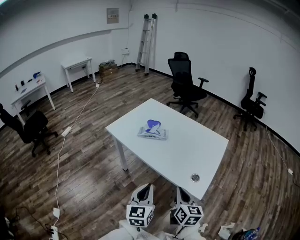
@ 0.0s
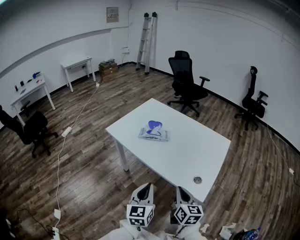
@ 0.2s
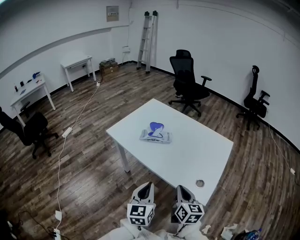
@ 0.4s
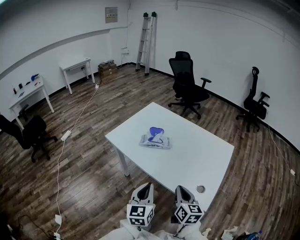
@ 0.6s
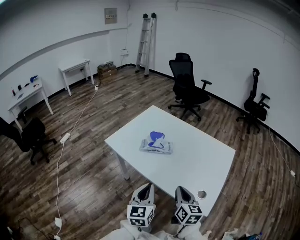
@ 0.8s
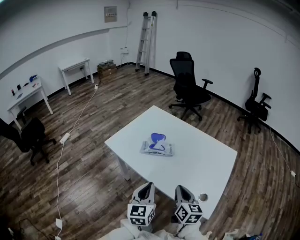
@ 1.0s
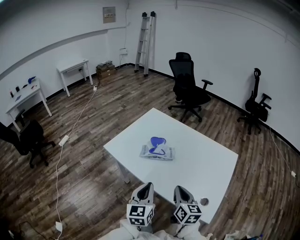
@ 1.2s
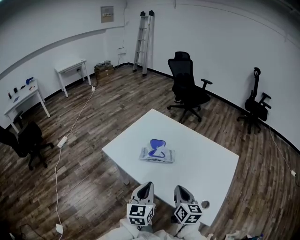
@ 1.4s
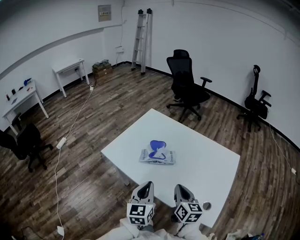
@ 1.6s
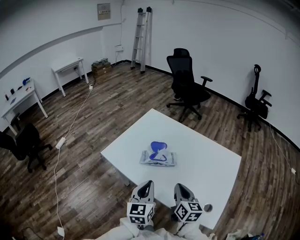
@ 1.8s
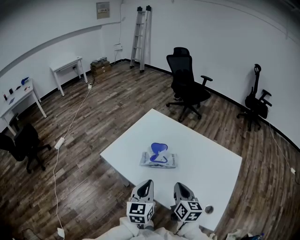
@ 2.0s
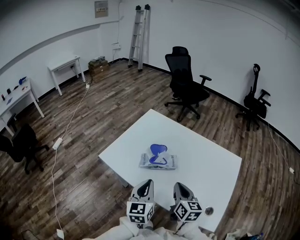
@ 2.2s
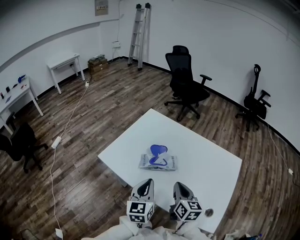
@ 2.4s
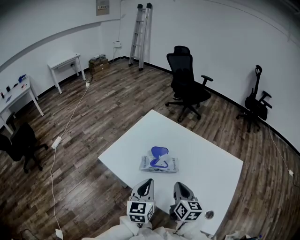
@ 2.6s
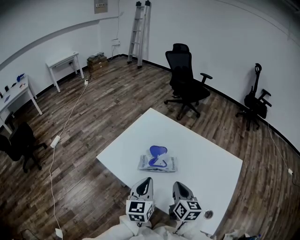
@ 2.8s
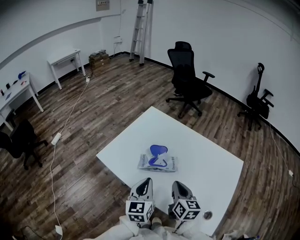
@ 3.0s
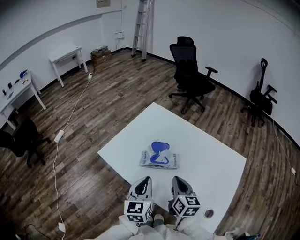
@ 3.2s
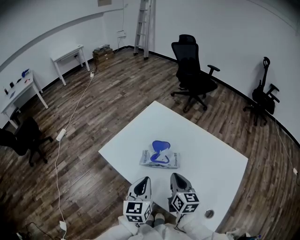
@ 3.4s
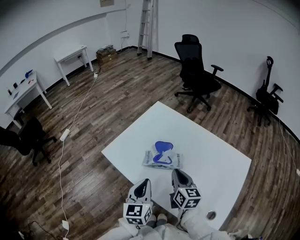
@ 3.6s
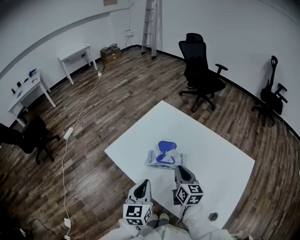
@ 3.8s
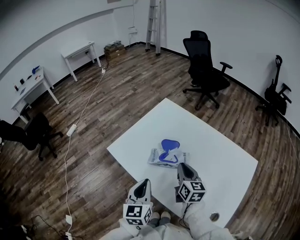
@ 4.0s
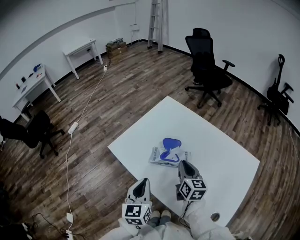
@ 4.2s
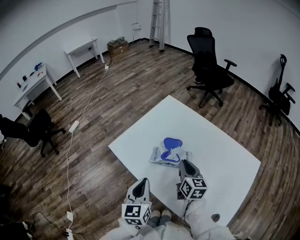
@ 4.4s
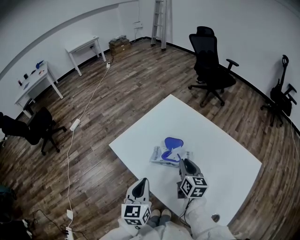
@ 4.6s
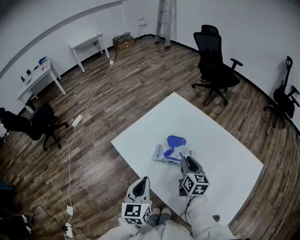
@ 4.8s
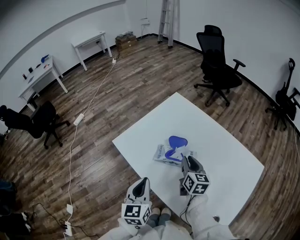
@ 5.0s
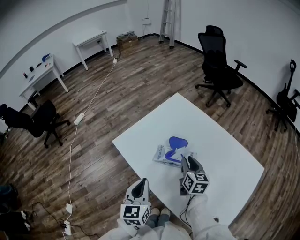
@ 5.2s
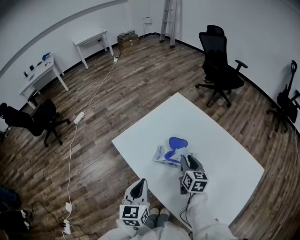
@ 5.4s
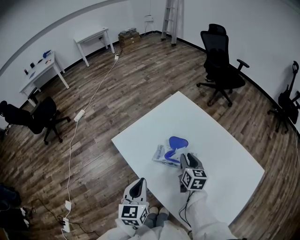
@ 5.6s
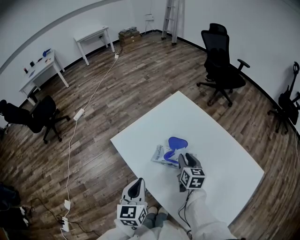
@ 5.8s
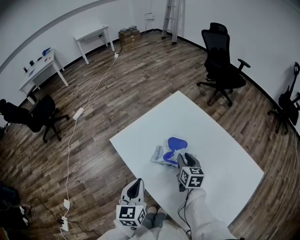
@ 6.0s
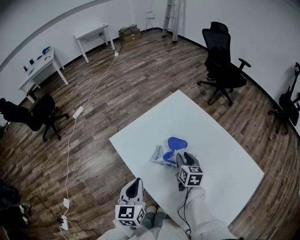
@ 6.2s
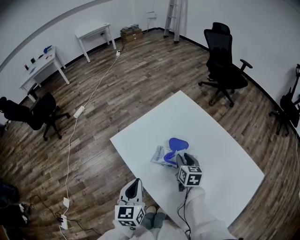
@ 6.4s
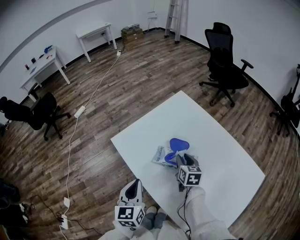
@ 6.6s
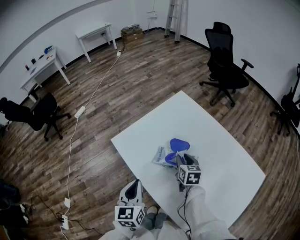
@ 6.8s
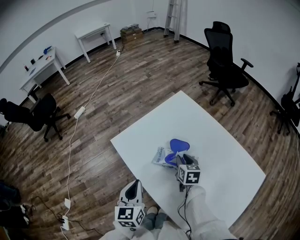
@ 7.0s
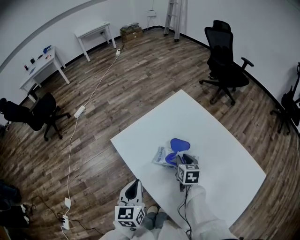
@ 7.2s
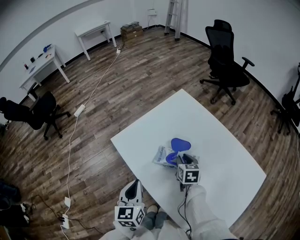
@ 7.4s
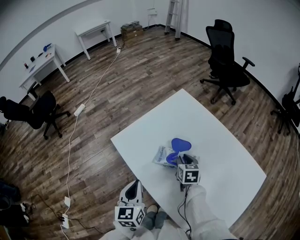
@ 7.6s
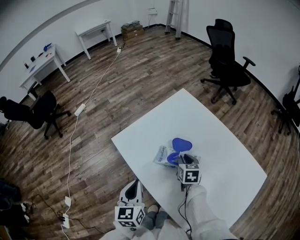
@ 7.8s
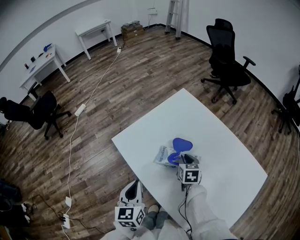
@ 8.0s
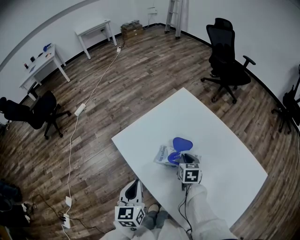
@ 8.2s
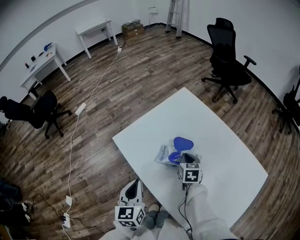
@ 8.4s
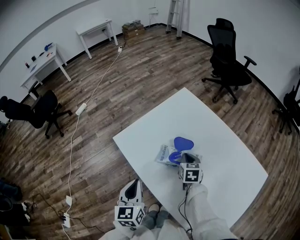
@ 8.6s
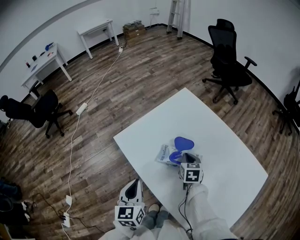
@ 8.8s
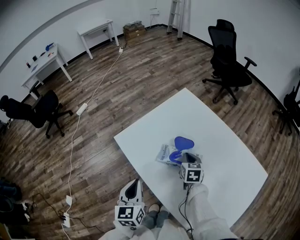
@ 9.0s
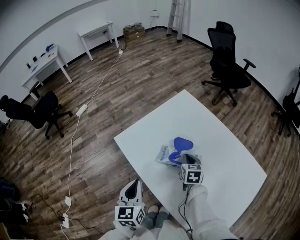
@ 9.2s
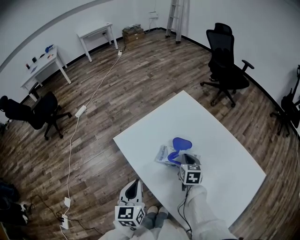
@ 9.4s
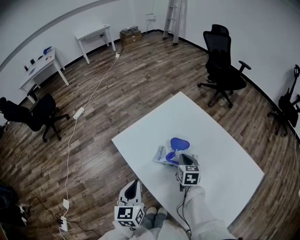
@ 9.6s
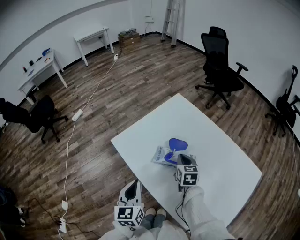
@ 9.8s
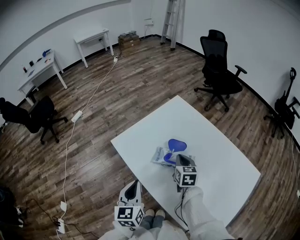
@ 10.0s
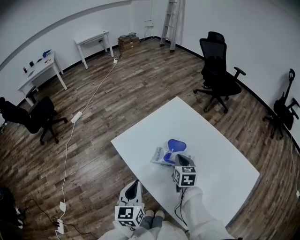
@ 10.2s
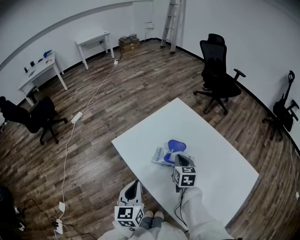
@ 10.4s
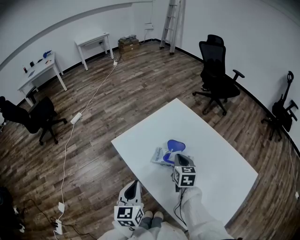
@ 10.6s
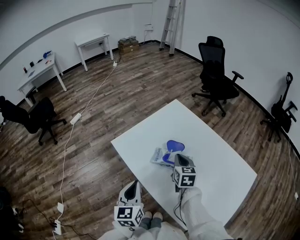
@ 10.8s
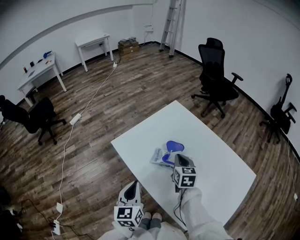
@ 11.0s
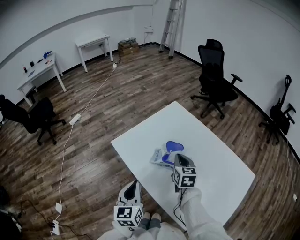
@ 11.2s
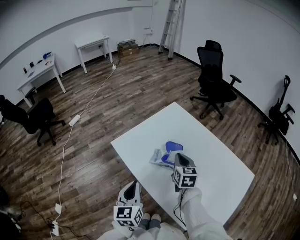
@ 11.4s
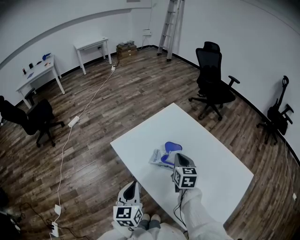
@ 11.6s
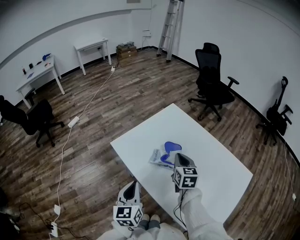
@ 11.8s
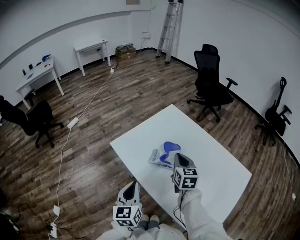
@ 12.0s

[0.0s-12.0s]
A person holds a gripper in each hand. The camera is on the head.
0.0s to 1.6s: Both grippers travel together forward, about 20 cm.
1.6s to 3.0s: The grippers both shift forward by some 10 cm.
3.0s to 4.4s: The left gripper goes roughly 5 cm to the left. Meanwhile the right gripper shifts some 10 cm forward.
4.4s to 6.0s: The right gripper travels forward and downward by about 10 cm.
6.0s to 7.6s: The right gripper moves downward, some 5 cm.
7.6s to 9.0s: The right gripper closes.
9.0s to 10.4s: The right gripper goes approximately 5 cm upward.
10.4s to 12.0s: The right gripper goes roughly 5 cm upward.

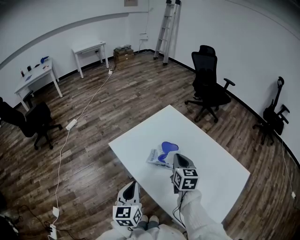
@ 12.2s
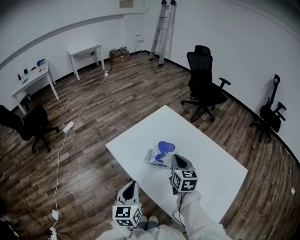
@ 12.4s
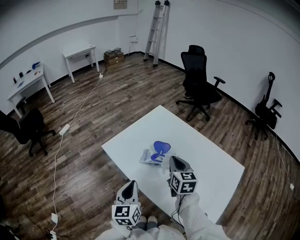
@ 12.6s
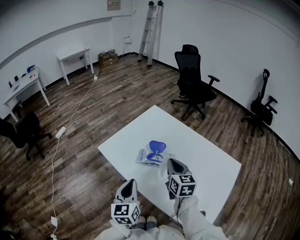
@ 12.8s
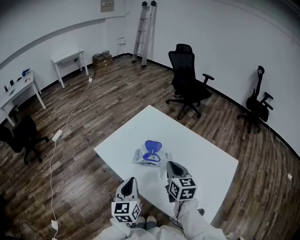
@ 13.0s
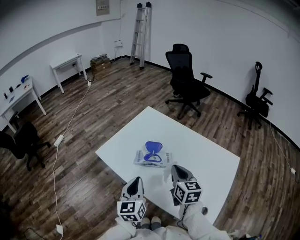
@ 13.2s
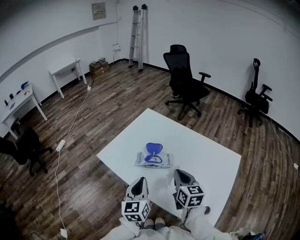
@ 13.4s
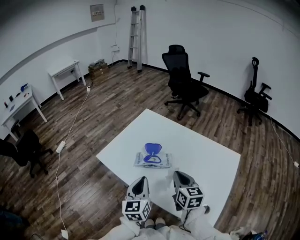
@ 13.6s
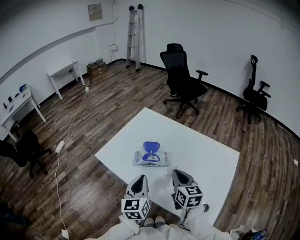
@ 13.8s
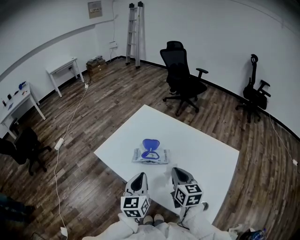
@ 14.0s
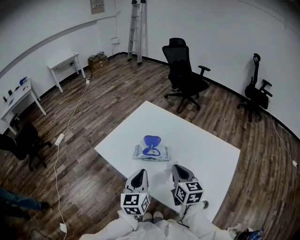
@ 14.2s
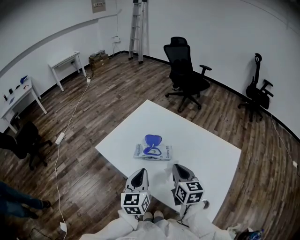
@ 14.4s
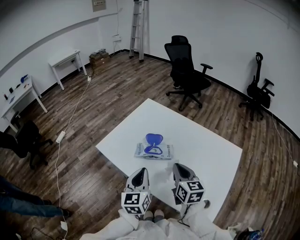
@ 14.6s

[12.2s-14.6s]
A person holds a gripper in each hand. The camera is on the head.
12.2s to 13.4s: The left gripper is displaced to the right by approximately 10 cm. Meanwhile the right gripper goes approximately 15 cm backward and to the right.
13.4s to 14.6s: There are only small adjustments of the grippers.

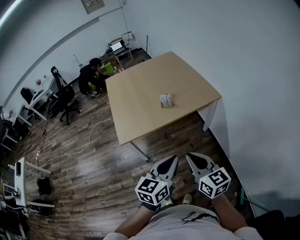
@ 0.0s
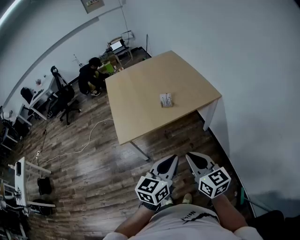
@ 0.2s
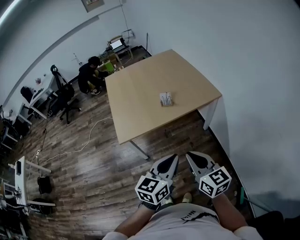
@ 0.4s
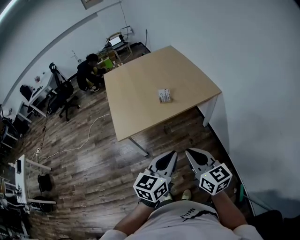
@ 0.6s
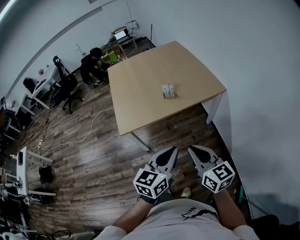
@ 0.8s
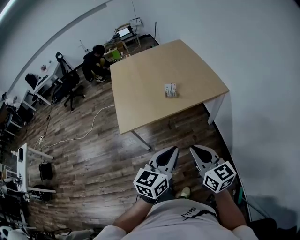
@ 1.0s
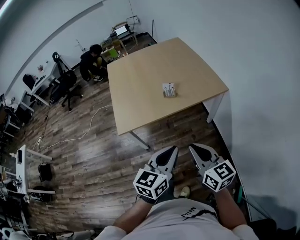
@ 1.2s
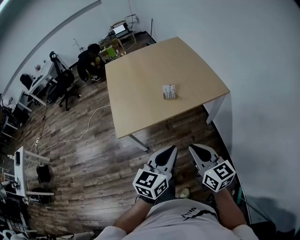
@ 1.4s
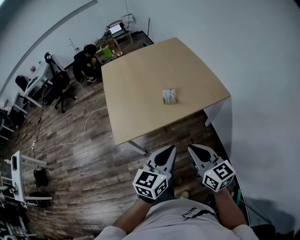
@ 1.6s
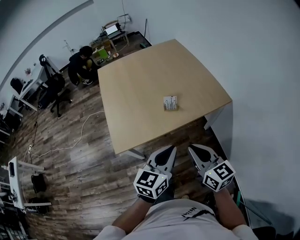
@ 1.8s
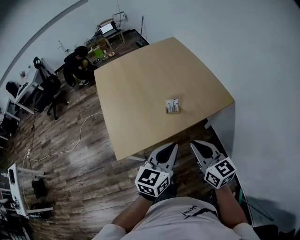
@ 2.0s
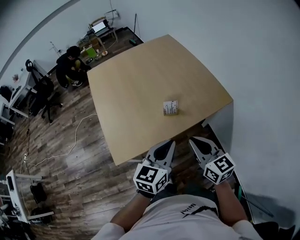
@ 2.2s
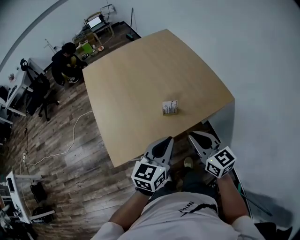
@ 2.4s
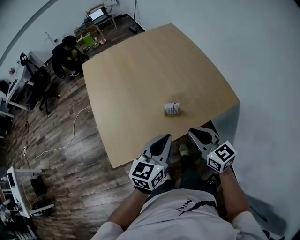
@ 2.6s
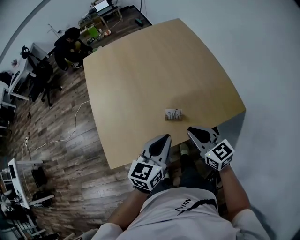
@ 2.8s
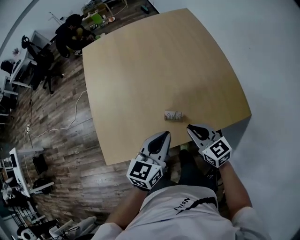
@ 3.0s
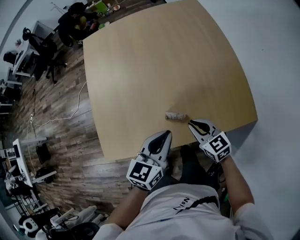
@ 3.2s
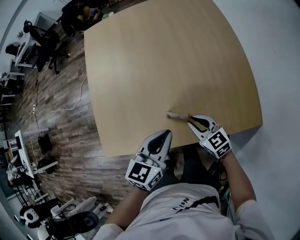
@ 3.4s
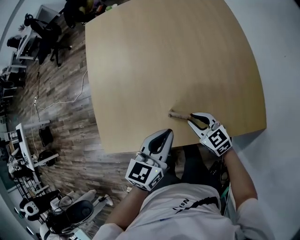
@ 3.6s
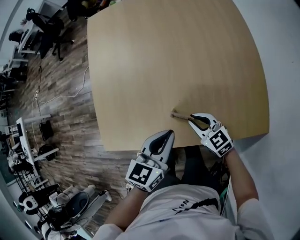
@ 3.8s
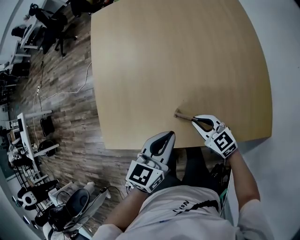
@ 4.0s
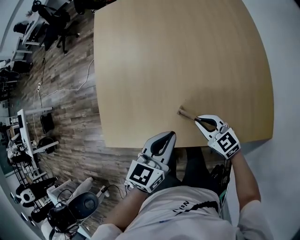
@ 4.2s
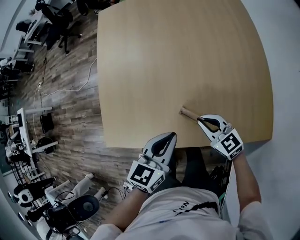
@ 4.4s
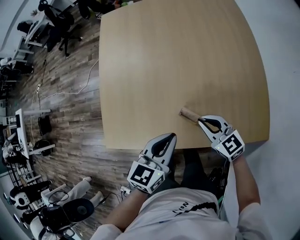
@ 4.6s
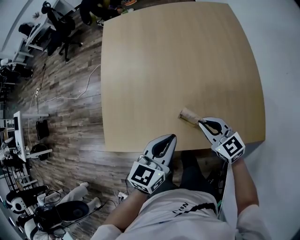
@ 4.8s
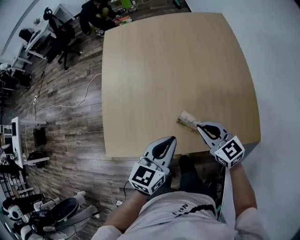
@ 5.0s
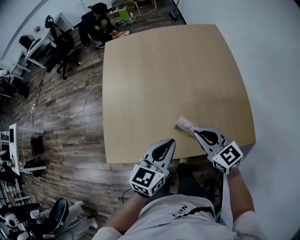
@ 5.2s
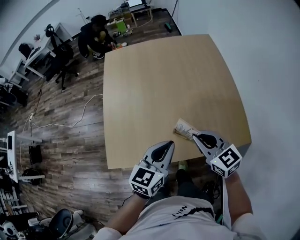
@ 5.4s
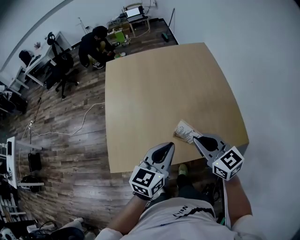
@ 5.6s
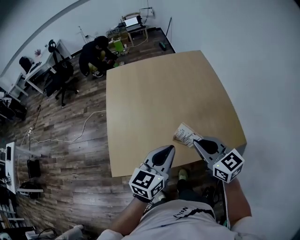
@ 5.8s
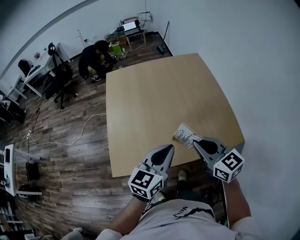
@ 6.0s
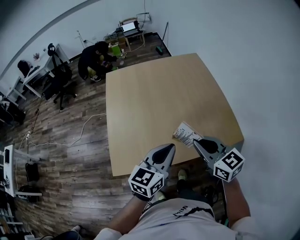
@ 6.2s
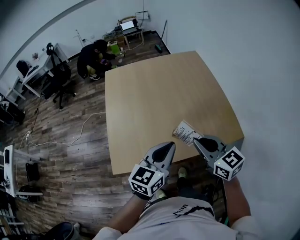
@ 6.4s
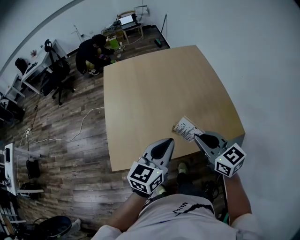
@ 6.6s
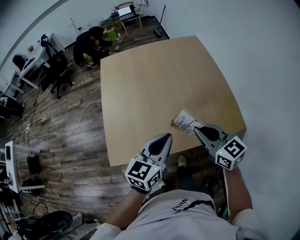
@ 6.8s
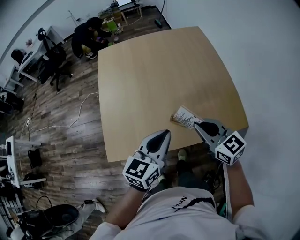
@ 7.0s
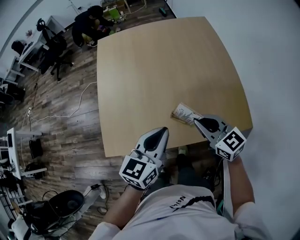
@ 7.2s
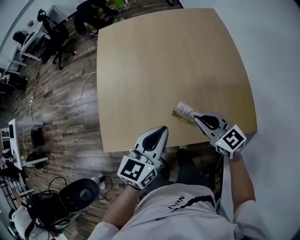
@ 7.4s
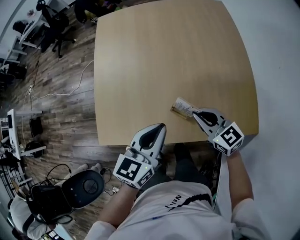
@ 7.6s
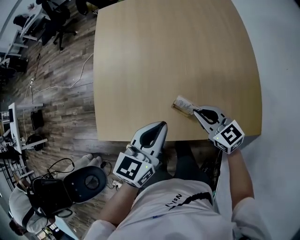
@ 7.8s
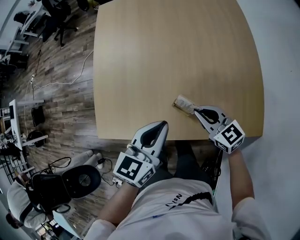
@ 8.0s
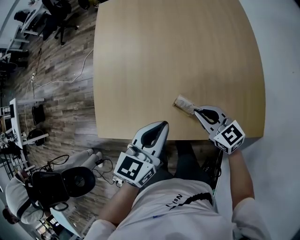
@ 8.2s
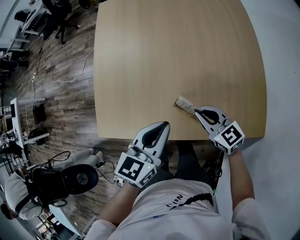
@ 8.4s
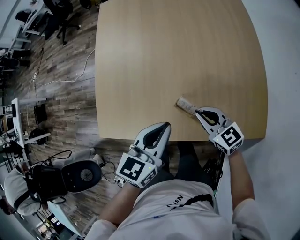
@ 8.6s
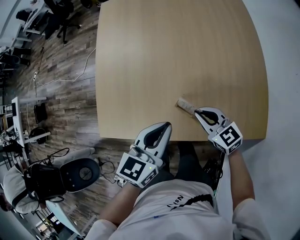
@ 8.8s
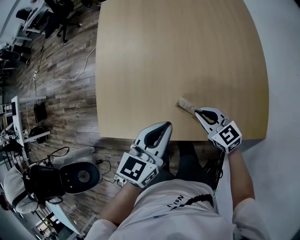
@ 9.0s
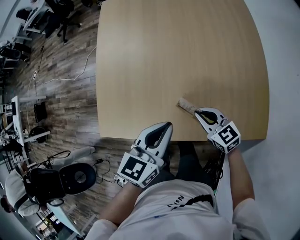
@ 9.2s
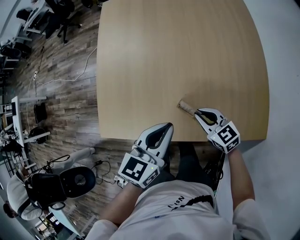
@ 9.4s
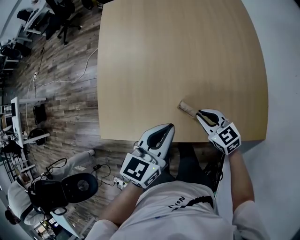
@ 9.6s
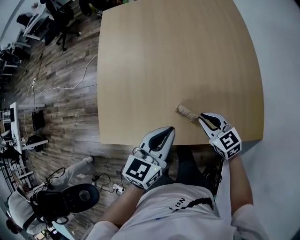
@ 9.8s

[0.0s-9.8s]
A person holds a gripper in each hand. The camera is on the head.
0.0s to 1.4s: Both grippers travel together forward, approximately 10 cm.
1.4s to 2.8s: The grippers both shift forward by some 35 cm.
2.8s to 4.2s: The left gripper goes about 15 cm downward and forward; the right gripper goes roughly 20 cm downward and forward, and turns by about 30 degrees.
4.2s to 5.6s: The left gripper goes some 15 cm upward and backward, while the right gripper shifts roughly 25 cm upward, and rotates some 20 degrees.
7.0s to 8.4s: The right gripper is displaced downward by approximately 20 cm, while the left gripper goes about 10 cm downward.
8.4s to 9.8s: There are only small adjustments of the grippers.
